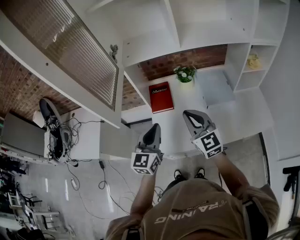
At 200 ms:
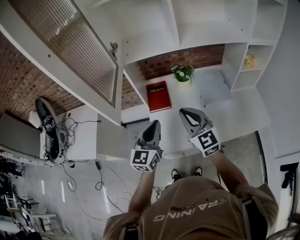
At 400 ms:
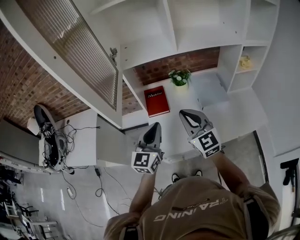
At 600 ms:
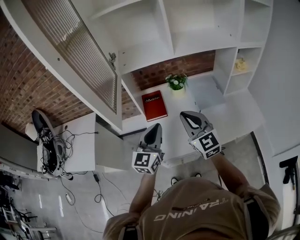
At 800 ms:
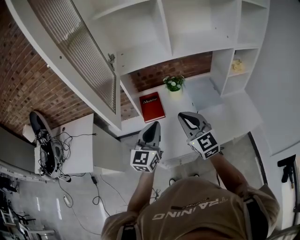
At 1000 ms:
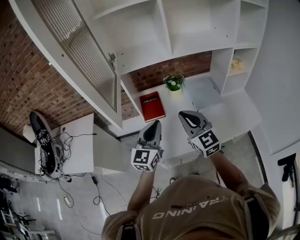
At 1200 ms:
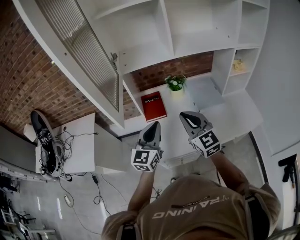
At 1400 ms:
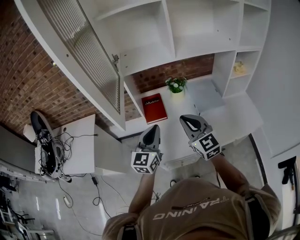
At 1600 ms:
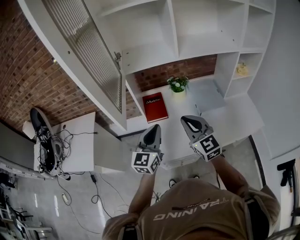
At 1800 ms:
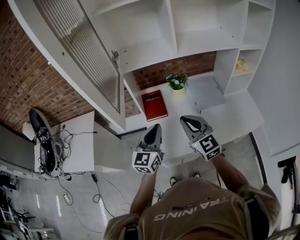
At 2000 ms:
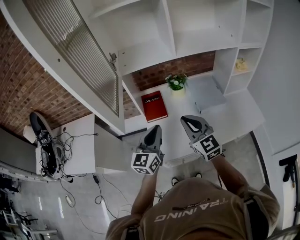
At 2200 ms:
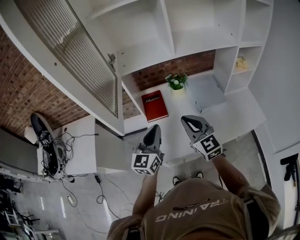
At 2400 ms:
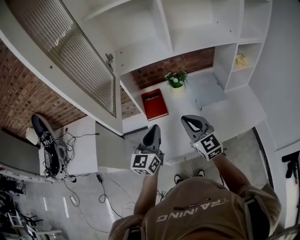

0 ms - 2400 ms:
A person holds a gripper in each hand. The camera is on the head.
0 ms - 2400 ms: There are only small adjustments of the grippers.

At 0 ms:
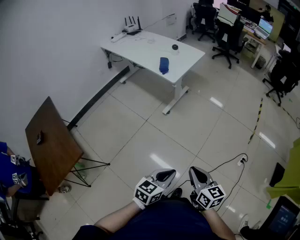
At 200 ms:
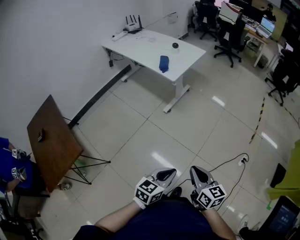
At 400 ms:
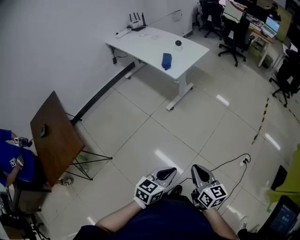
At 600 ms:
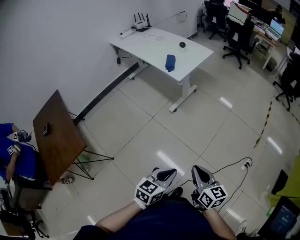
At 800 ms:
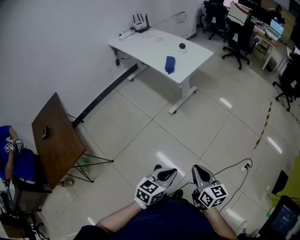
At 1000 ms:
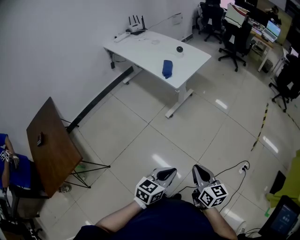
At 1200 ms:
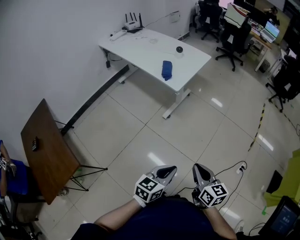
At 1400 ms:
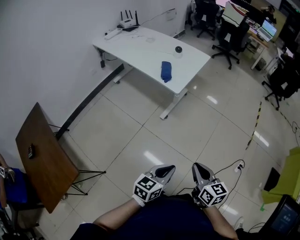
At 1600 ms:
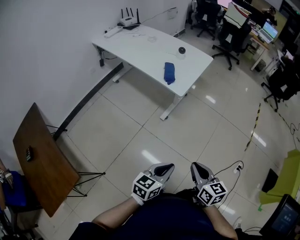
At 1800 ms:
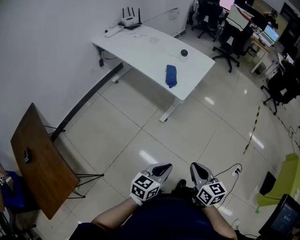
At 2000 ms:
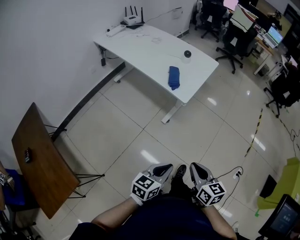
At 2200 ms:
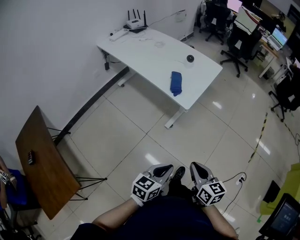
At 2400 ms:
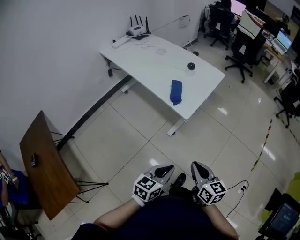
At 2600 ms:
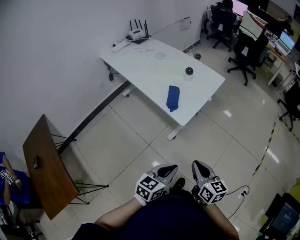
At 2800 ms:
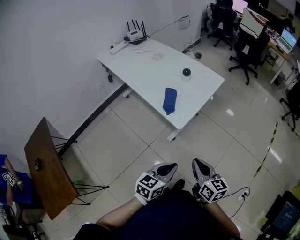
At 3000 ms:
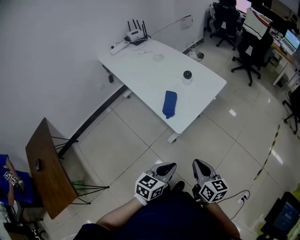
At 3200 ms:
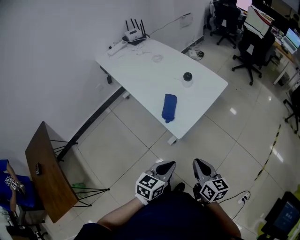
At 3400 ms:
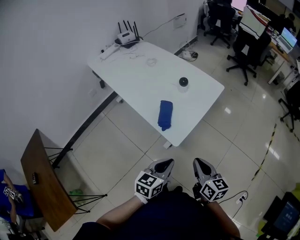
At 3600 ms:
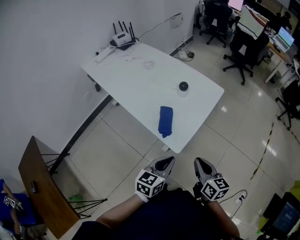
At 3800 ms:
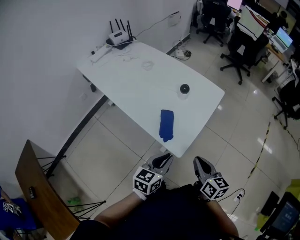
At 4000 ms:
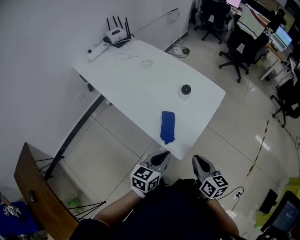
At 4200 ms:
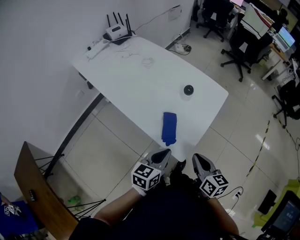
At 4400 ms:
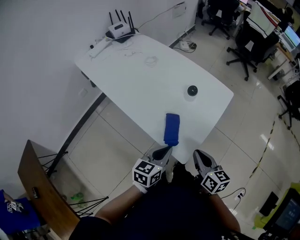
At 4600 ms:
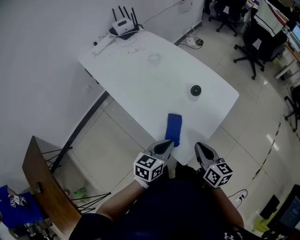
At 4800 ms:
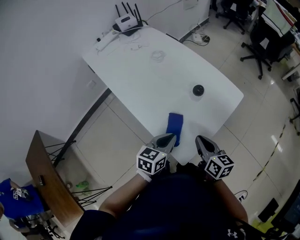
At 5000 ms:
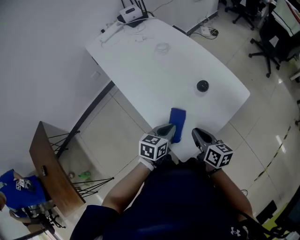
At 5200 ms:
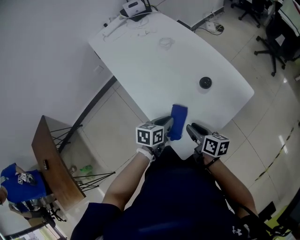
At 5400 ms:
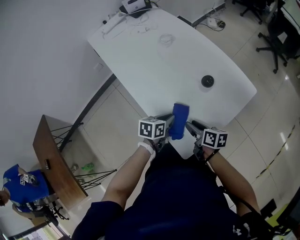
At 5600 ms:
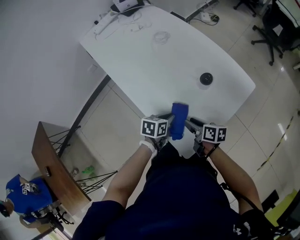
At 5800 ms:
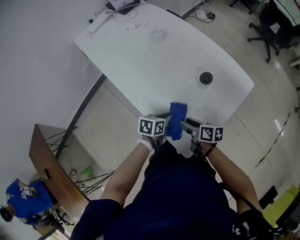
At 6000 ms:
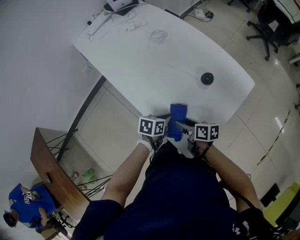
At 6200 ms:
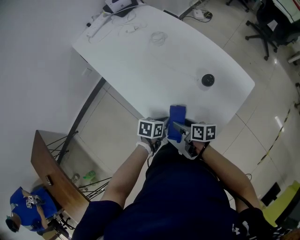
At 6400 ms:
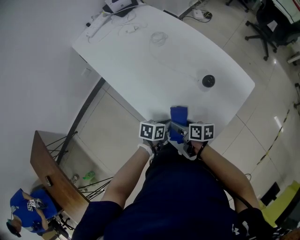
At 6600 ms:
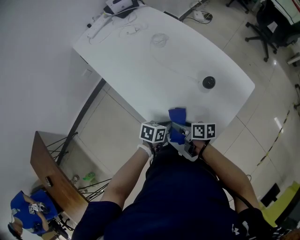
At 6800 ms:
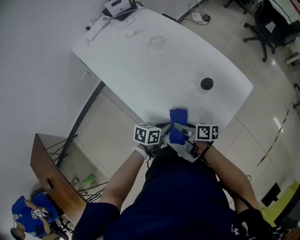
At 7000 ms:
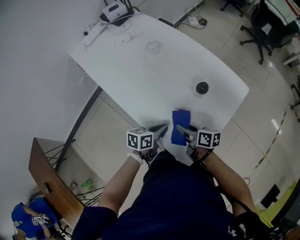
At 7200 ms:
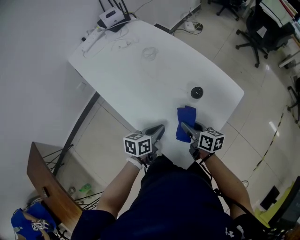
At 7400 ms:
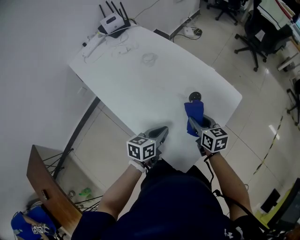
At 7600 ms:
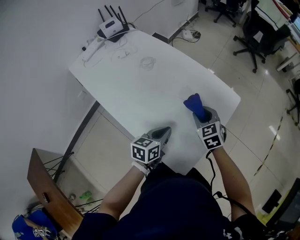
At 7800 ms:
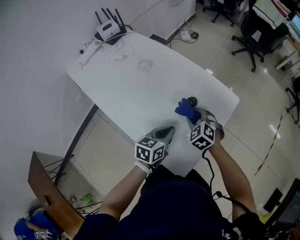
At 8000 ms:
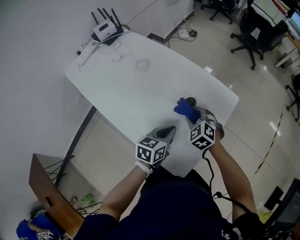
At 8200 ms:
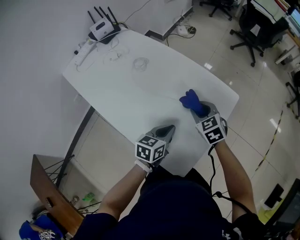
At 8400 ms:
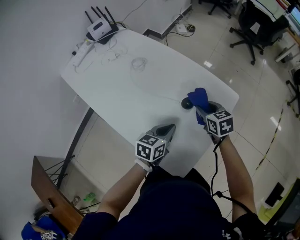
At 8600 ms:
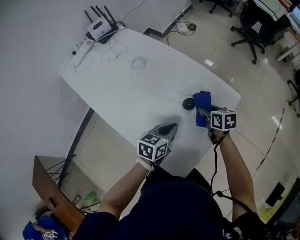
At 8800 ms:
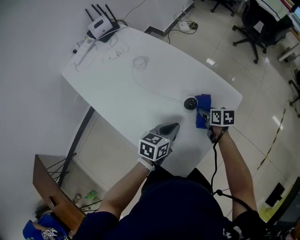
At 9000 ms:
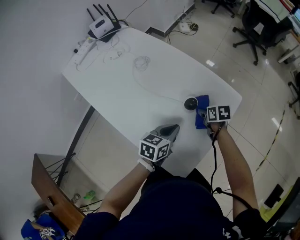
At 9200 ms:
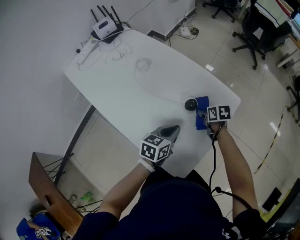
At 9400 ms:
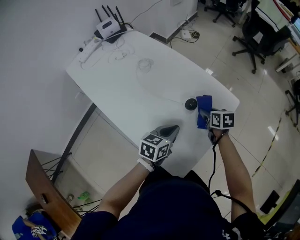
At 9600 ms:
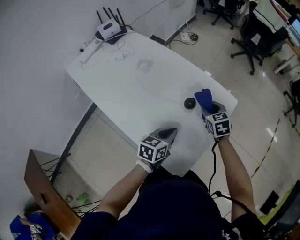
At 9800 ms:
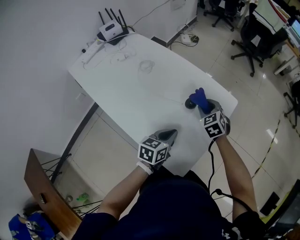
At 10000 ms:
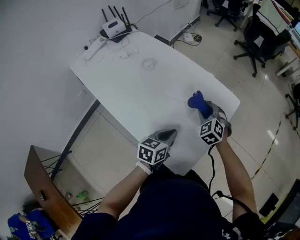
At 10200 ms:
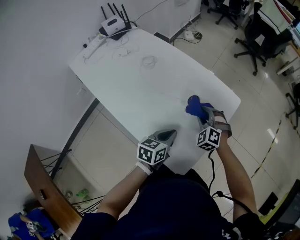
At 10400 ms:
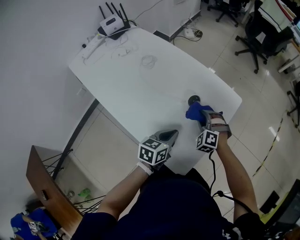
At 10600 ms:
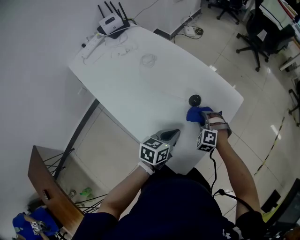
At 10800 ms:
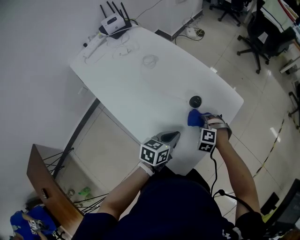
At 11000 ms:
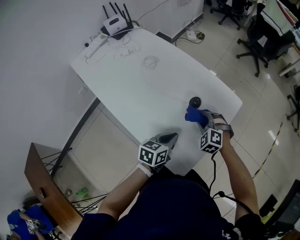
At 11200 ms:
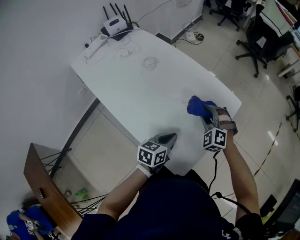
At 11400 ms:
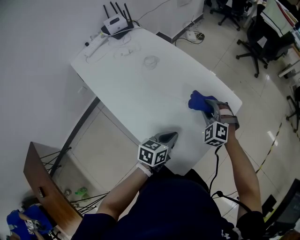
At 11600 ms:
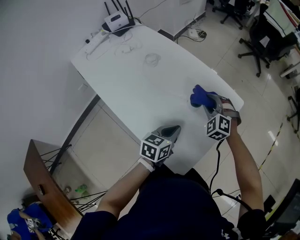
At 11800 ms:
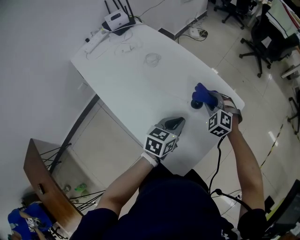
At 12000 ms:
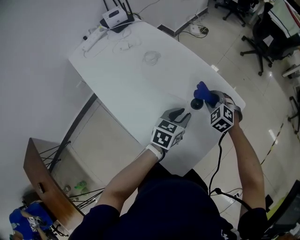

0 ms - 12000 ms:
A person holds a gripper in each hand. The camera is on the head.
0 ms - 1600 ms: Both grippers move forward and to the left, approximately 20 cm.
1600 ms - 3000 ms: The grippers both shift forward by about 25 cm.
3000 ms - 4400 ms: The right gripper goes about 20 cm forward. Meanwhile the left gripper travels forward and to the left by roughly 30 cm.
4400 ms - 6000 ms: The right gripper shifts roughly 25 cm downward, forward and to the left, turns by roughly 40 degrees, and opens up. Meanwhile the left gripper travels downward and forward by roughly 20 cm, and turns by about 30 degrees.
6000 ms - 7600 ms: The right gripper goes some 20 cm forward, to the right and upward, rotates around the line of its fingers by approximately 60 degrees, counterclockwise from behind, and closes up; the left gripper shifts approximately 10 cm upward, and turns by roughly 20 degrees.
7600 ms - 9000 ms: The right gripper is displaced downward and to the right by some 15 cm, and rolls clockwise, seen from behind, by approximately 40 degrees. The left gripper goes some 5 cm to the right.
9000 ms - 10400 ms: The right gripper is displaced upward and backward by some 10 cm, and rolls counterclockwise, seen from behind, by about 80 degrees. The left gripper heads backward, covering some 5 cm.
10400 ms - 12000 ms: Both grippers move forward, approximately 10 cm.

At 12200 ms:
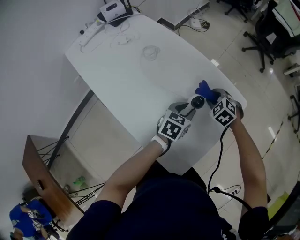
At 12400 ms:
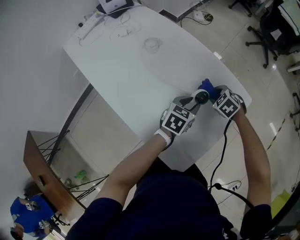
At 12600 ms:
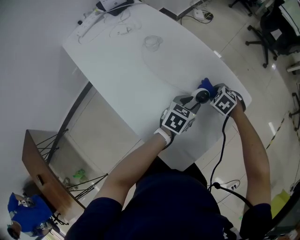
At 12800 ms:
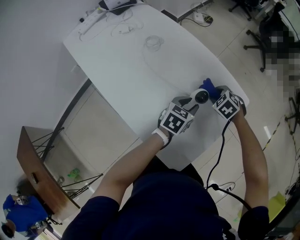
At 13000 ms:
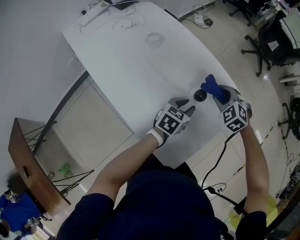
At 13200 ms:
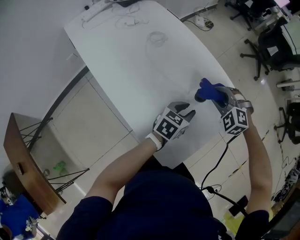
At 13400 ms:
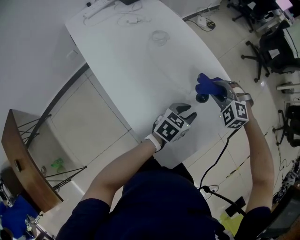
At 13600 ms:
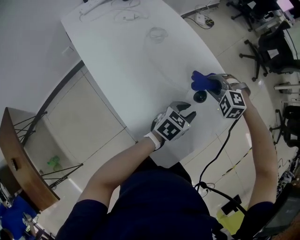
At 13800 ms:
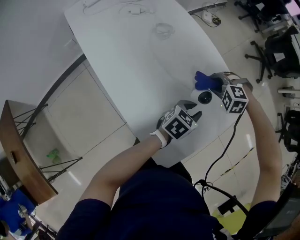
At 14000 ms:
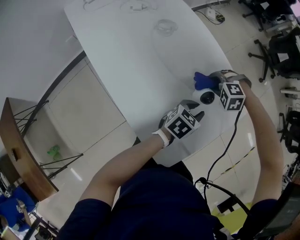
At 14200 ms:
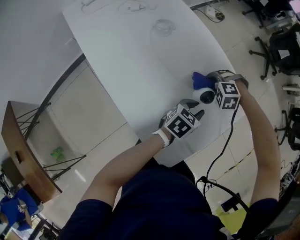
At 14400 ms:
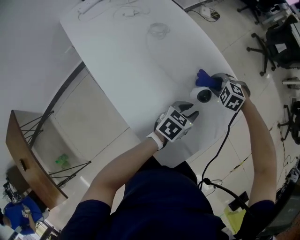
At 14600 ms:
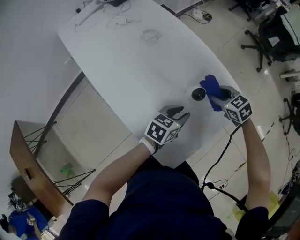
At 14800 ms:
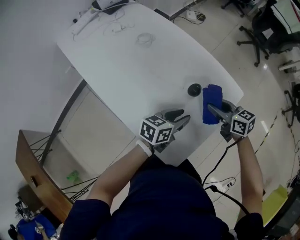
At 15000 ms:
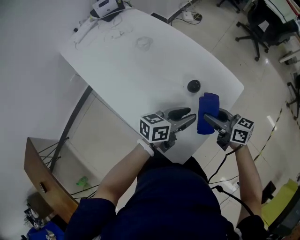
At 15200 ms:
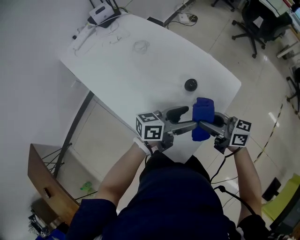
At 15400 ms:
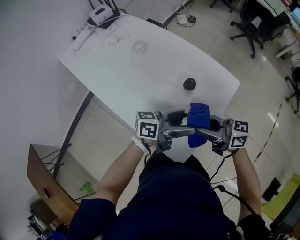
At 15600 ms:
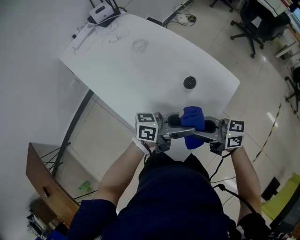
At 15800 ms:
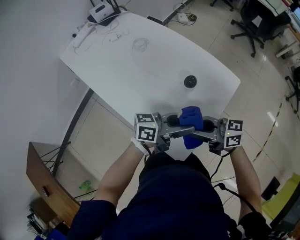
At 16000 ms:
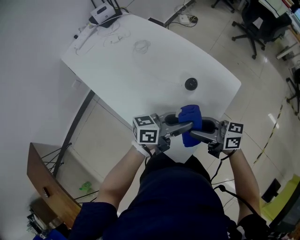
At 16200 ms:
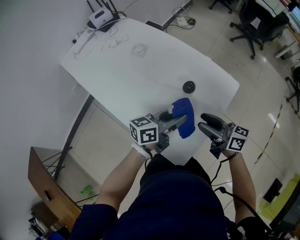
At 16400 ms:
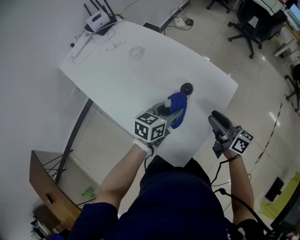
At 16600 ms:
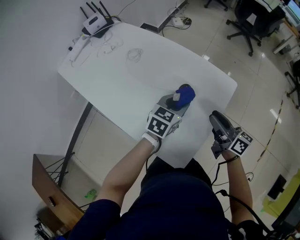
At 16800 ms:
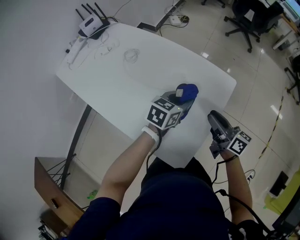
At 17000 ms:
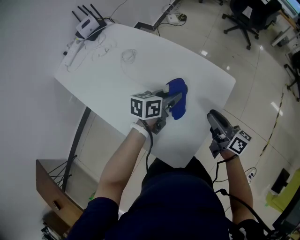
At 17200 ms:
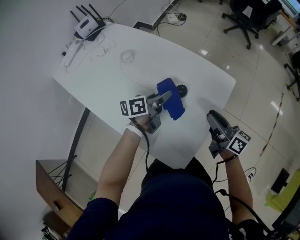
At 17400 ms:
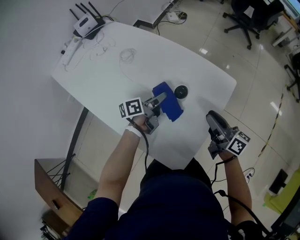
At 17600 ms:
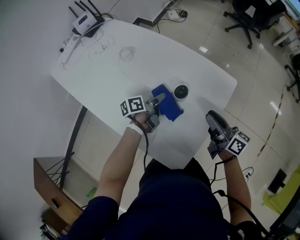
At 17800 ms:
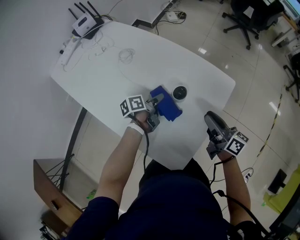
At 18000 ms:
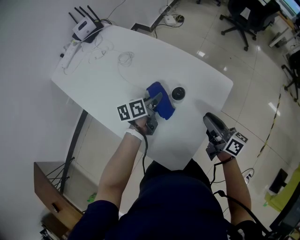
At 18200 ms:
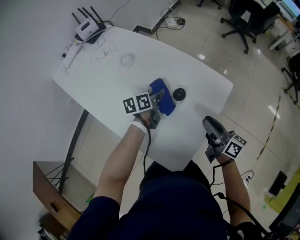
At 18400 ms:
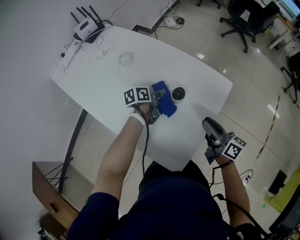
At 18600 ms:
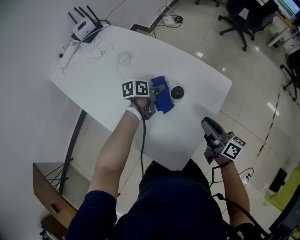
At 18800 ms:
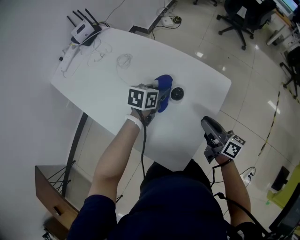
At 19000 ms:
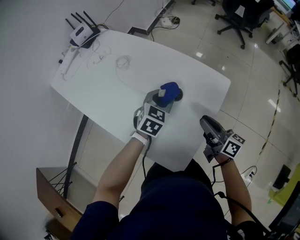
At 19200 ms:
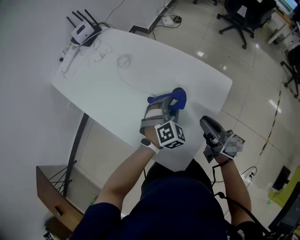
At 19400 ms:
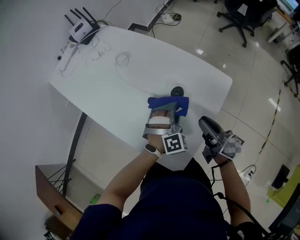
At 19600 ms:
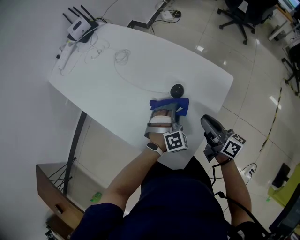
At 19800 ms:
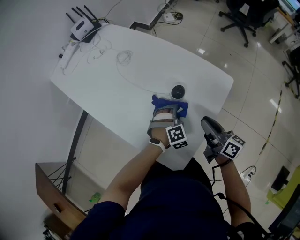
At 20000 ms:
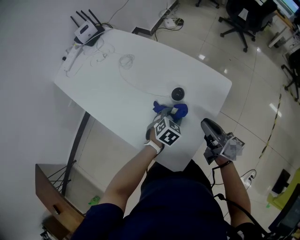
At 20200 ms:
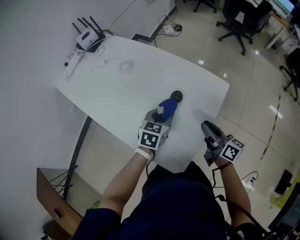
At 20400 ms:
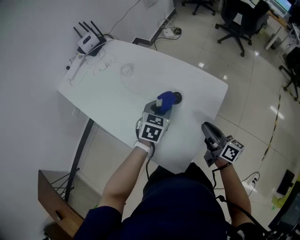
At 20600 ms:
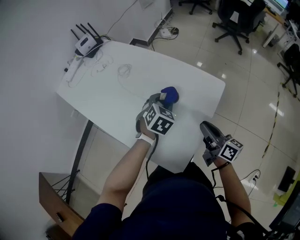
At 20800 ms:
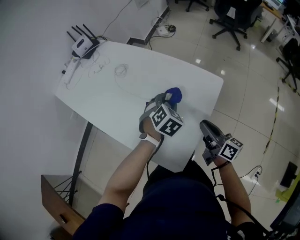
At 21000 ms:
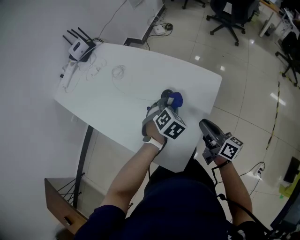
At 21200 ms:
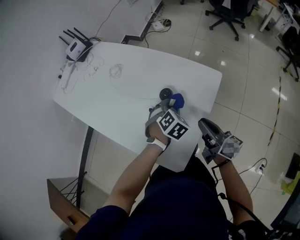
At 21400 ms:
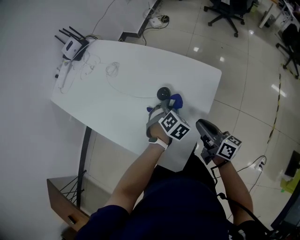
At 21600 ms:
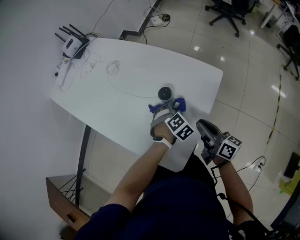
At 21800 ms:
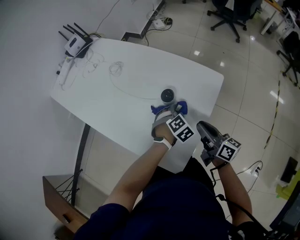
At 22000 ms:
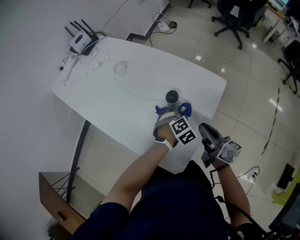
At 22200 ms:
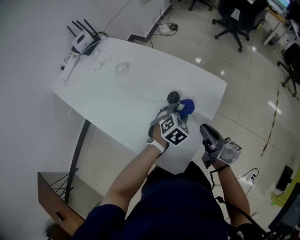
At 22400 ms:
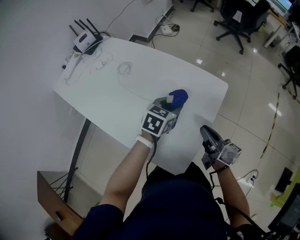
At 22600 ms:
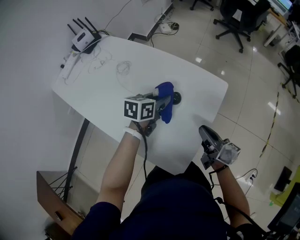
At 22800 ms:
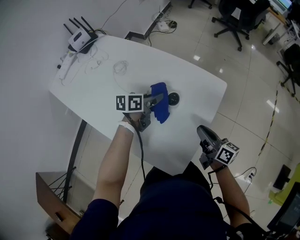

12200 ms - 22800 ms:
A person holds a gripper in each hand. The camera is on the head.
12200 ms - 13800 ms: The right gripper moves up and down over approximately 10 cm, changing direction 2 times, and rotates around the line of its fingers by some 40 degrees, counterclockwise from behind.
13800 ms - 15200 ms: The right gripper shifts by about 25 cm, and points its fingers approximately 70 degrees further upward; the left gripper is displaced upward by roughly 10 cm, points its fingers approximately 30 degrees further upward, and opens its fingers.
15200 ms - 16800 ms: The left gripper moves approximately 10 cm, points its fingers roughly 30 degrees further downward, and closes up, while the right gripper ends up approximately 10 cm from where it was, and swivels roughly 30 degrees.
16800 ms - 18200 ms: The left gripper shifts about 15 cm to the left, downward and forward, and swivels about 40 degrees.
18200 ms - 19800 ms: The left gripper is displaced backward, to the right and downward by roughly 15 cm, and twists about 100 degrees clockwise, seen from behind.
19800 ms - 21200 ms: The left gripper is displaced upward by about 5 cm, and changes its angle by about 20 degrees.
21200 ms - 22800 ms: The left gripper swings up and down, approximately 15 cm each way, with 2 reversals, and twists some 60 degrees counterclockwise, seen from behind.
